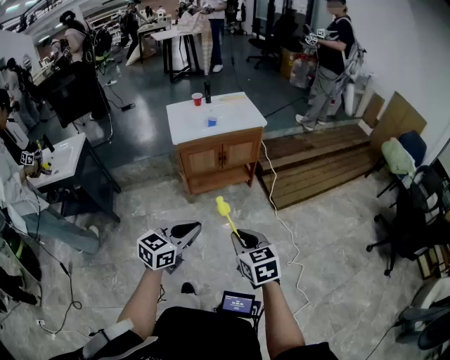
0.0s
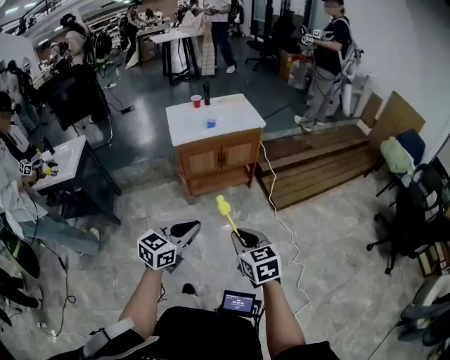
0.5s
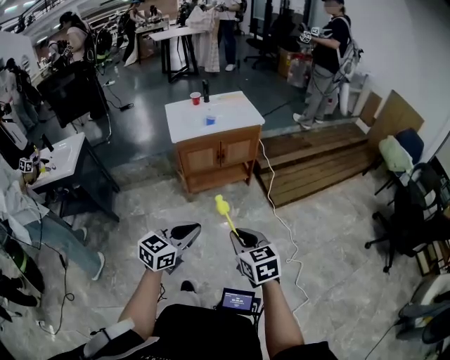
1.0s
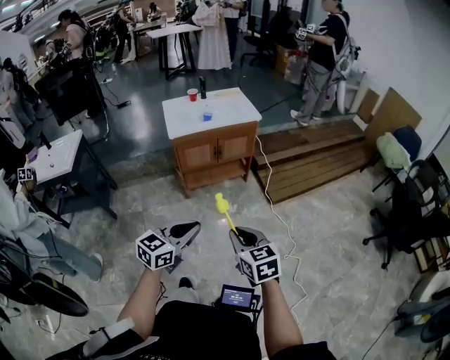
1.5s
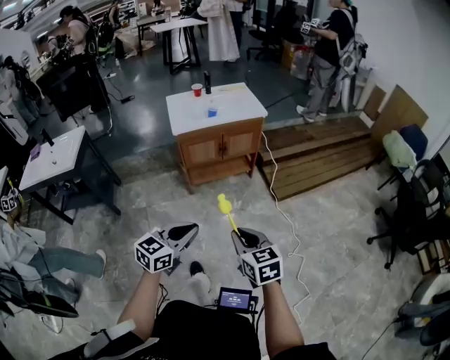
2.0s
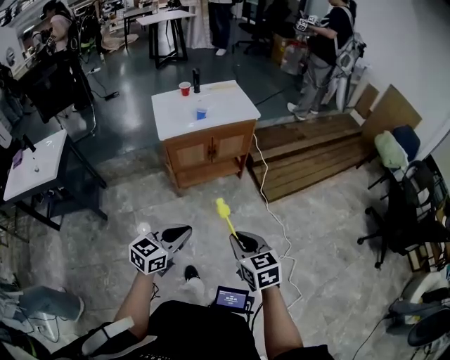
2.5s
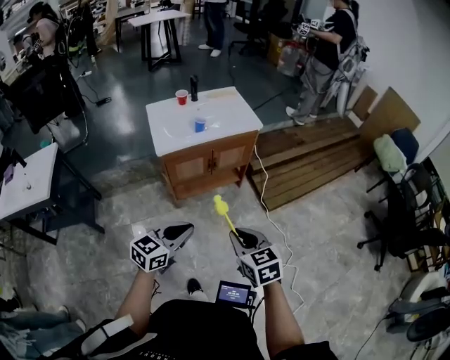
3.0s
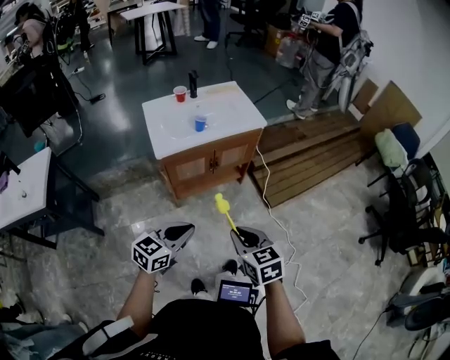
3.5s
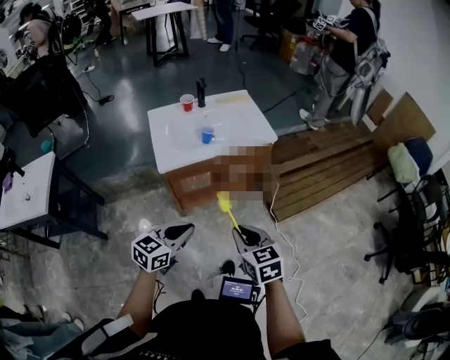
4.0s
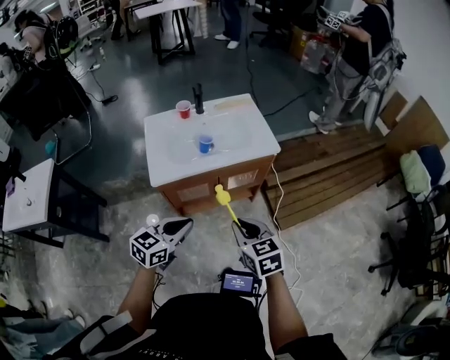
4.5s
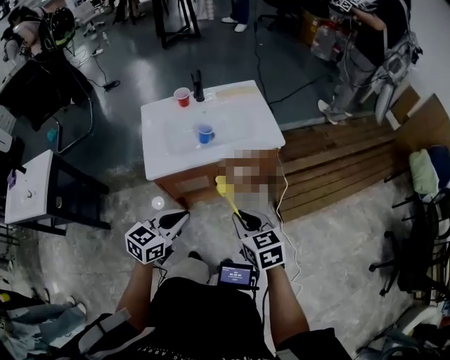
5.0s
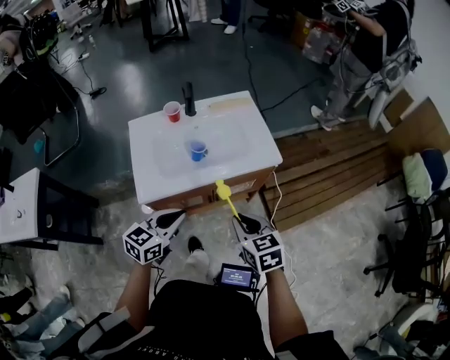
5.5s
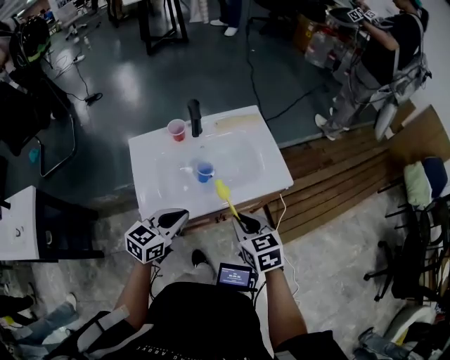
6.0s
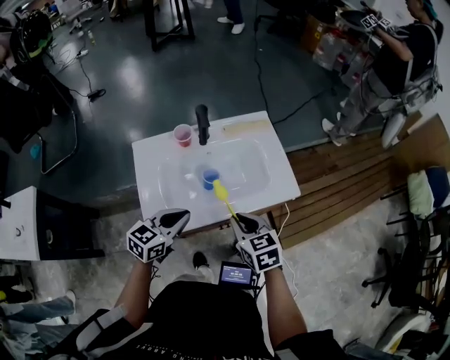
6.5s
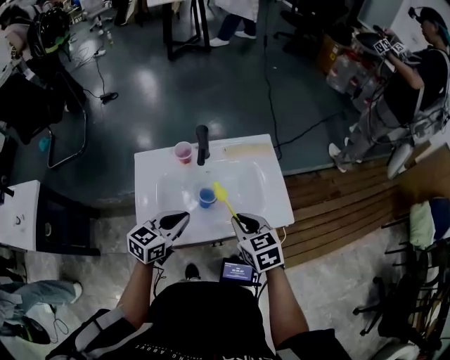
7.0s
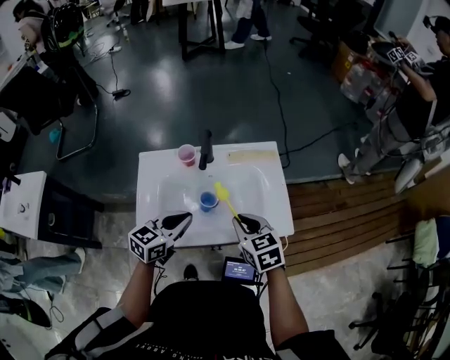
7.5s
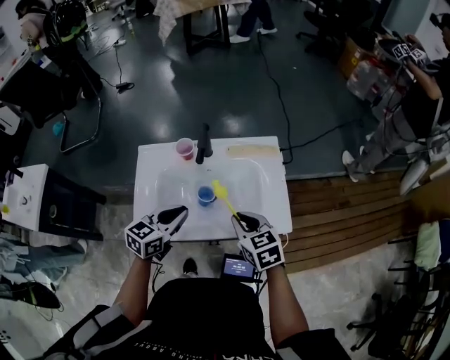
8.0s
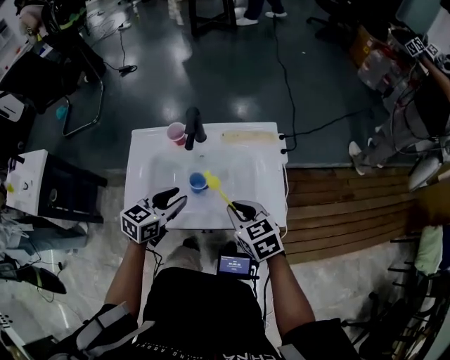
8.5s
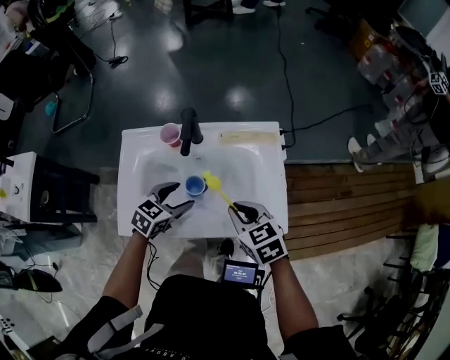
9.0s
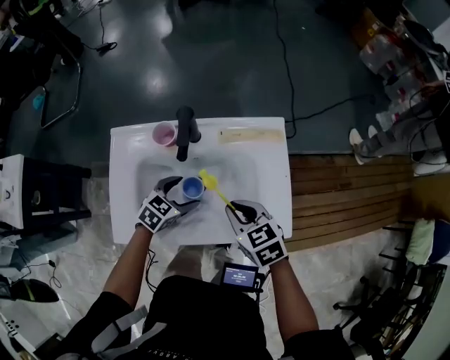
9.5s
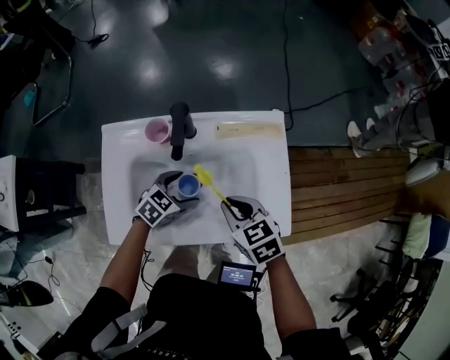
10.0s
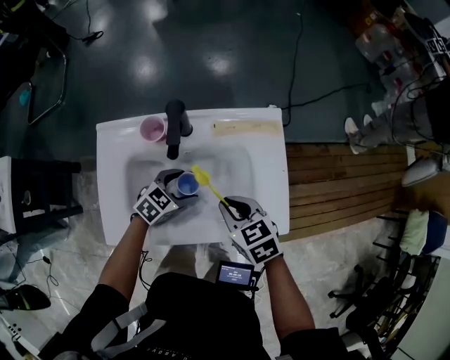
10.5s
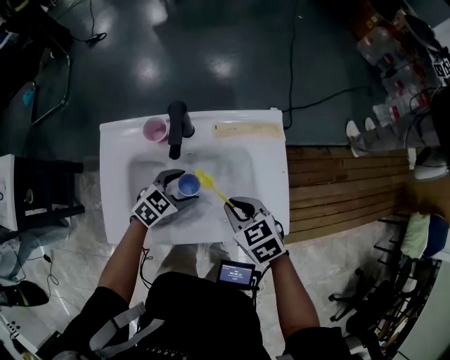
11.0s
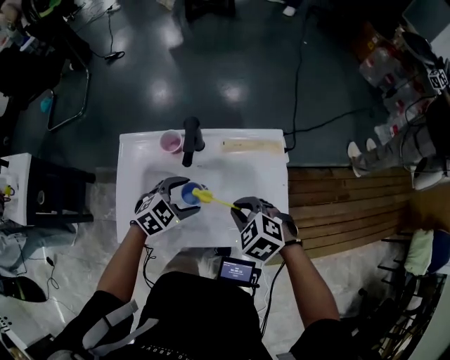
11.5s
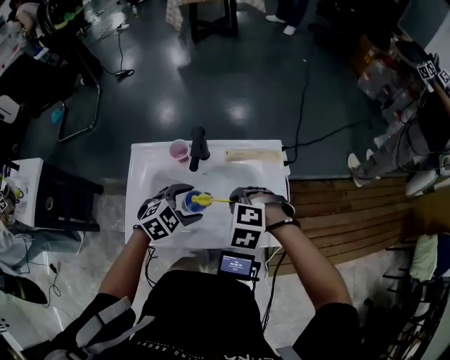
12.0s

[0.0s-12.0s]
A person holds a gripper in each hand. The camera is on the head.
0.0s to 2.0s: There are only small adjustments of the grippers.
2.0s to 4.0s: Both grippers travel together forward, about 30 cm.
4.0s to 6.0s: The grippers both shift forward by about 35 cm.
6.0s to 8.0s: The two grippers go about 10 cm forward.
8.0s to 10.0s: The right gripper travels forward and downward by about 10 cm. The left gripper goes about 20 cm downward and forward, changes its angle by about 30 degrees, and opens up.
10.0s to 12.0s: The left gripper heads upward, covering about 15 cm, and changes its angle by approximately 20 degrees, while the right gripper shifts about 5 cm upward, and twists approximately 60 degrees counterclockwise, seen from behind.

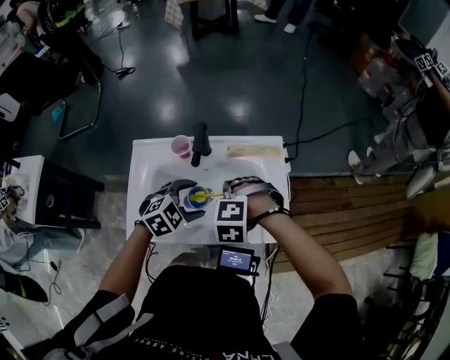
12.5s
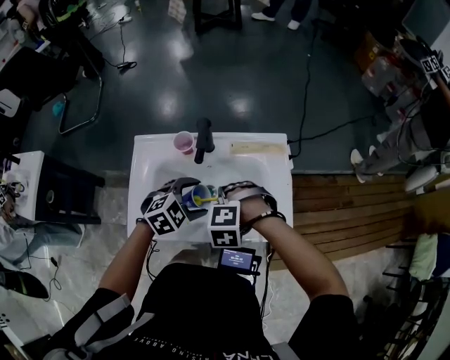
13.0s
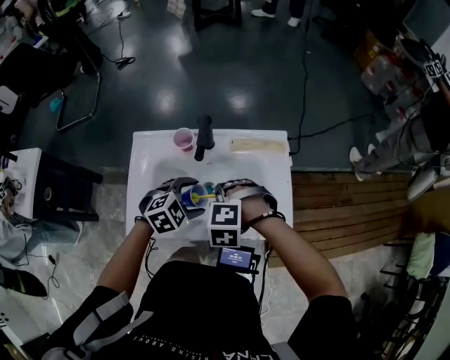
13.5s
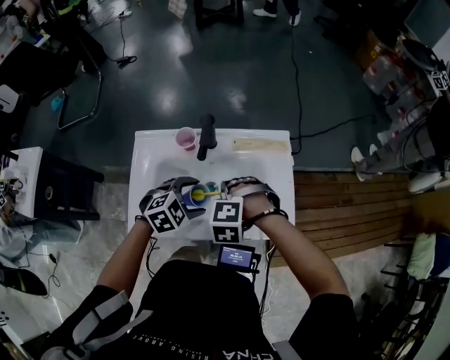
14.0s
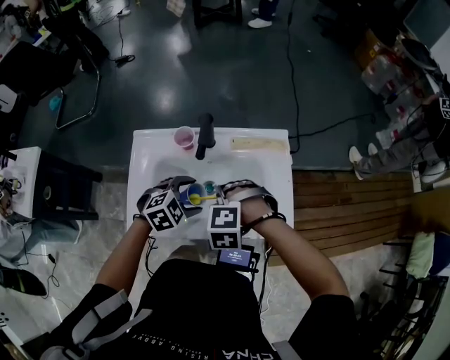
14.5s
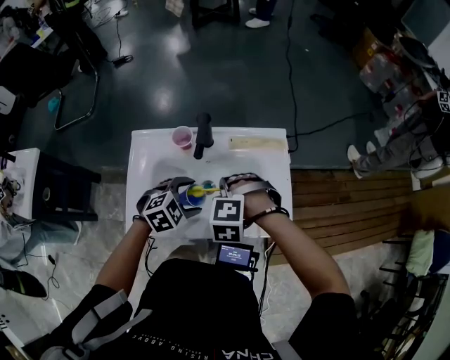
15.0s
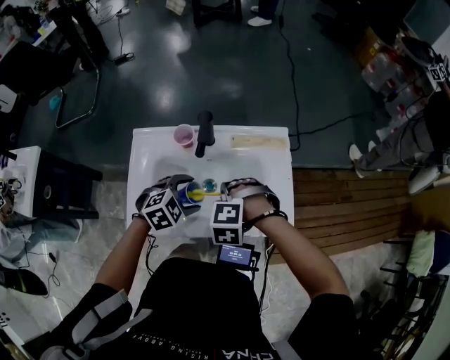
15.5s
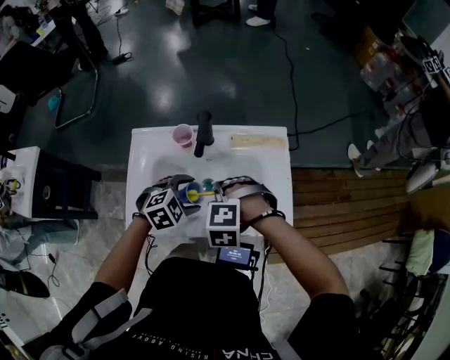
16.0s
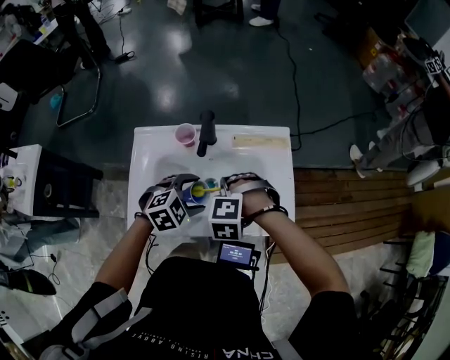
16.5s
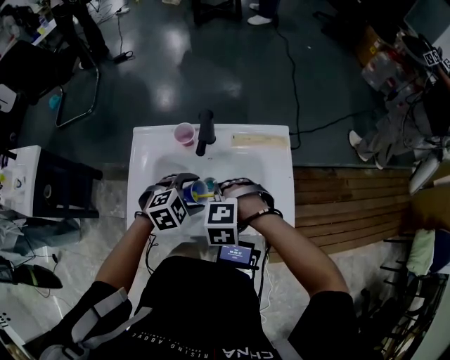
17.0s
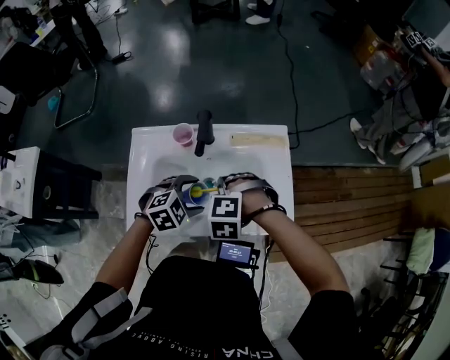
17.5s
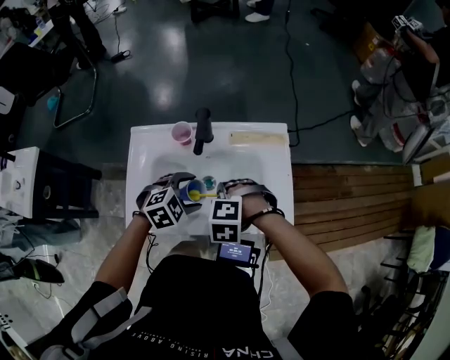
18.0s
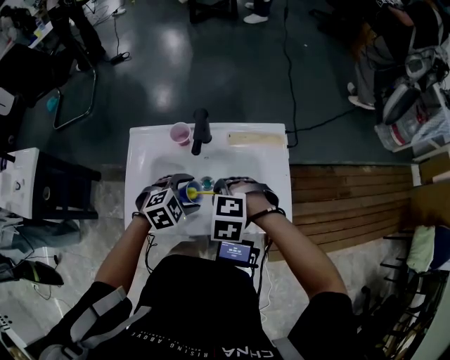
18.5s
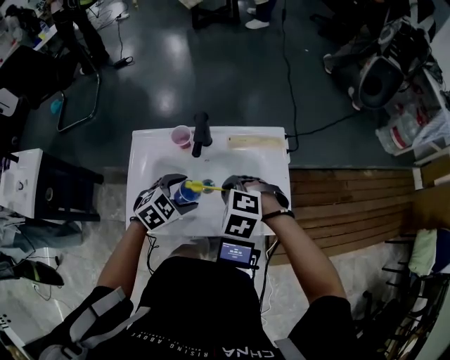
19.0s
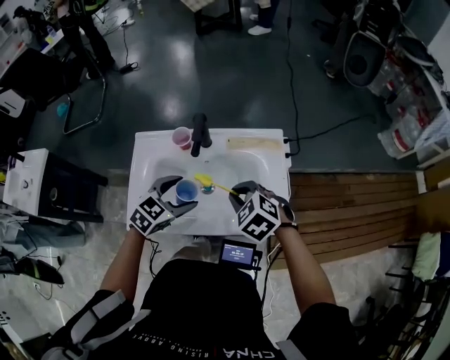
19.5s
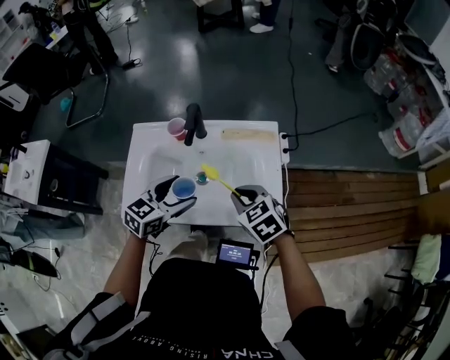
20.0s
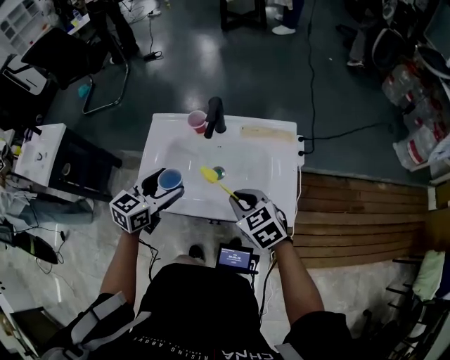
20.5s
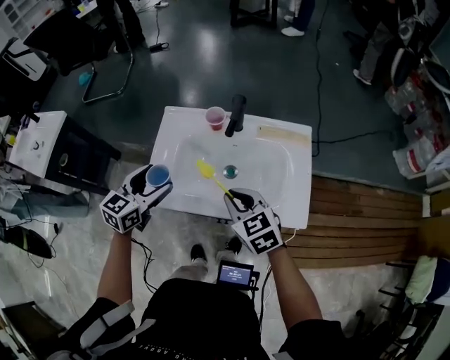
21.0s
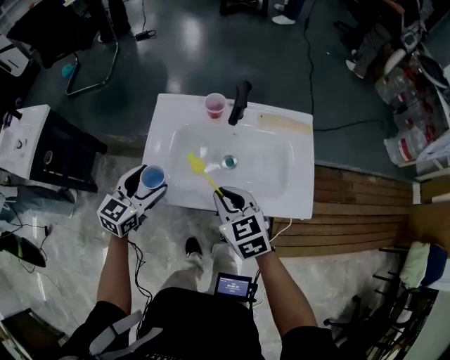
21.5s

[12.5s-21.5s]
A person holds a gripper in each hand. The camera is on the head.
12.5s to 17.0s: The grippers stay close to where they were, moving slightly.
17.0s to 19.5s: The right gripper moves roughly 10 cm, and changes its angle by about 40 degrees; the left gripper turns by approximately 30 degrees.
19.5s to 21.5s: The right gripper heads to the left and backward, covering roughly 15 cm, and changes its angle by roughly 30 degrees. Meanwhile the left gripper travels to the left by roughly 20 cm, and rotates some 30 degrees.

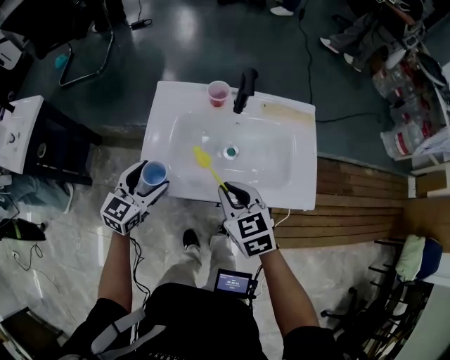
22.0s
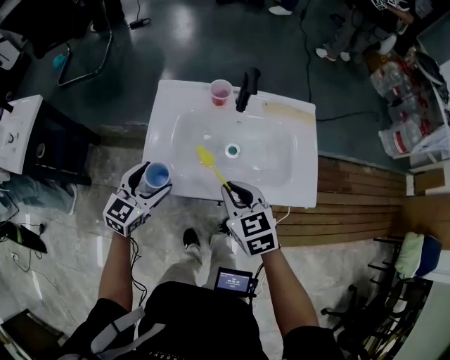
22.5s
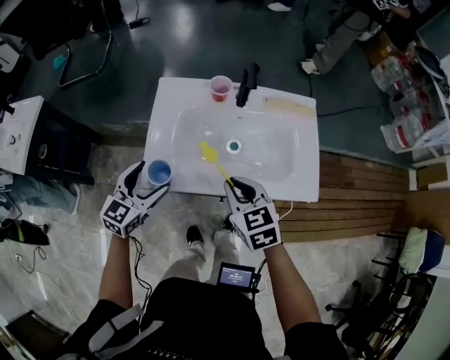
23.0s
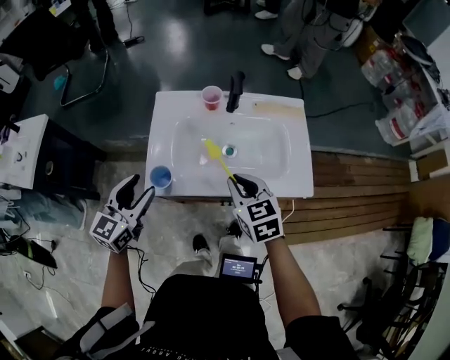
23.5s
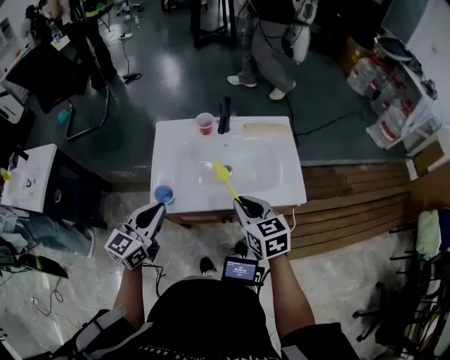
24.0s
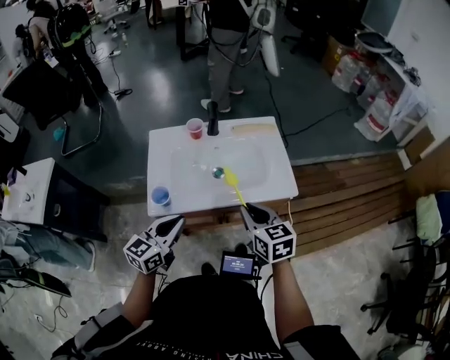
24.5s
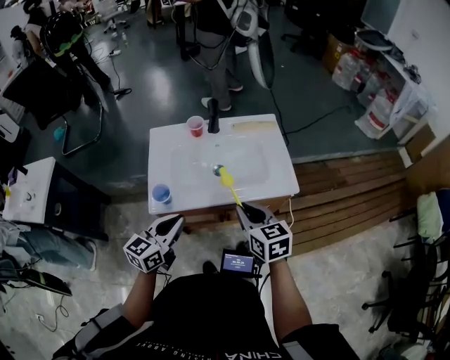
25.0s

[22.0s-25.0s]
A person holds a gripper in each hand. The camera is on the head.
22.0s to 23.5s: The left gripper heads upward, covering roughly 10 cm.
23.5s to 25.0s: The right gripper is displaced backward and to the right by roughly 10 cm; the left gripper shifts roughly 15 cm to the right and backward, and closes up.

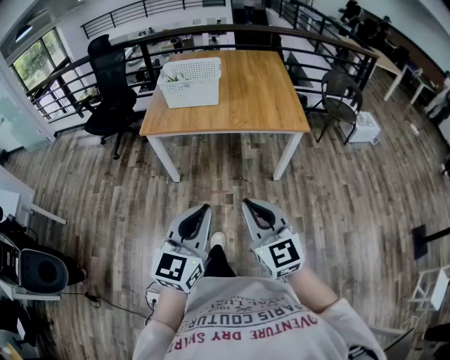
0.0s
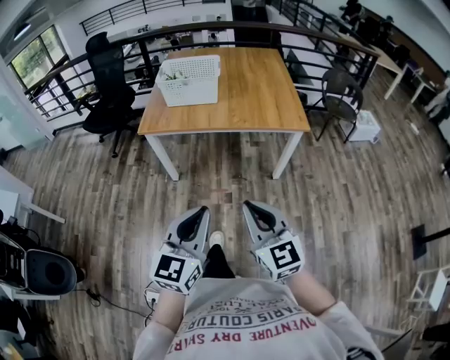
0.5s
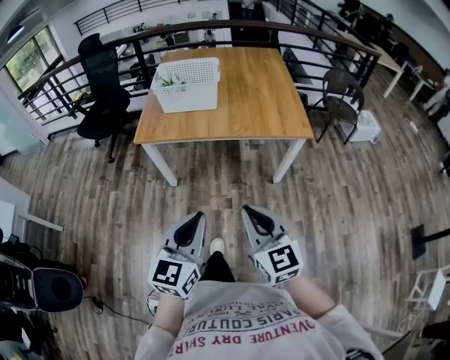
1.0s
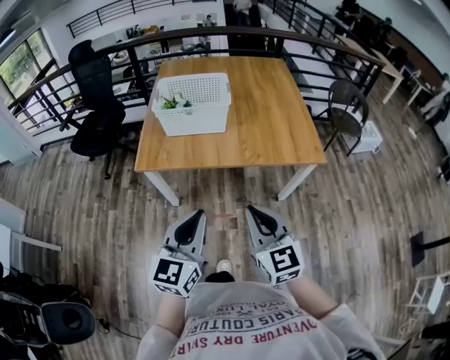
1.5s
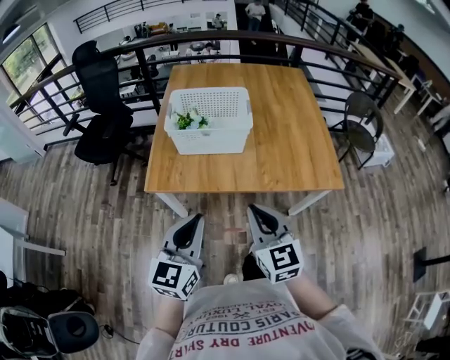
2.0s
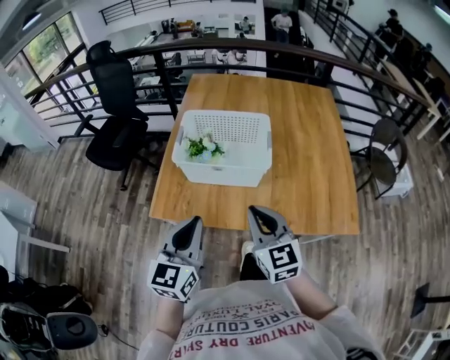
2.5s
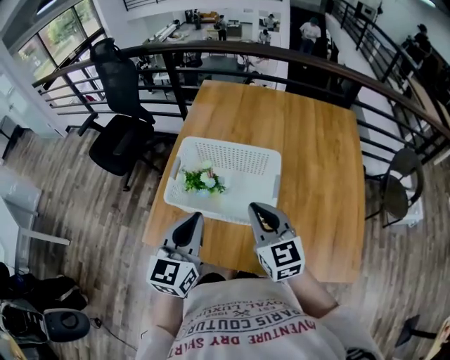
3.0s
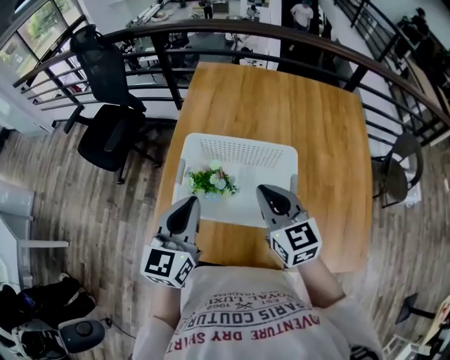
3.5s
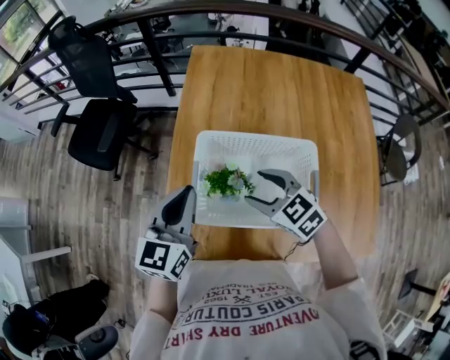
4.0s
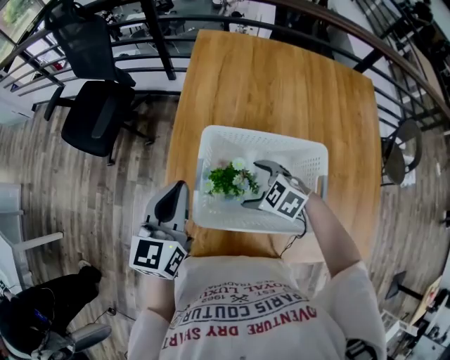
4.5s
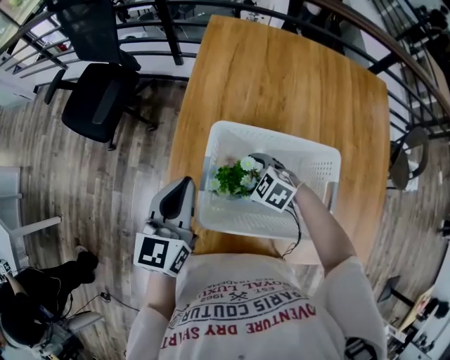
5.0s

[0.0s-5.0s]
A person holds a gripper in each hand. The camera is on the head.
0.0s to 2.5s: Both grippers are carried forward, approximately 60 cm.
2.5s to 5.0s: The left gripper changes place by some 40 cm. The right gripper shifts by some 50 cm, angles its fingers downward, by about 40 degrees, and opens.
